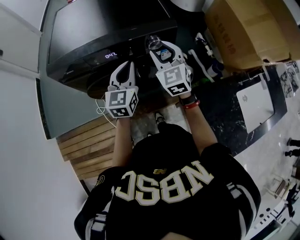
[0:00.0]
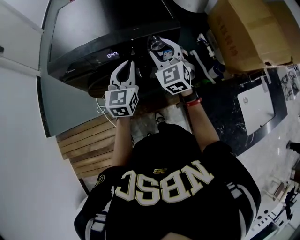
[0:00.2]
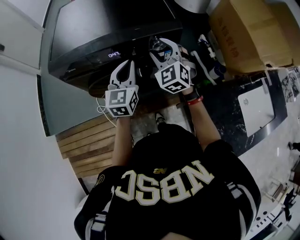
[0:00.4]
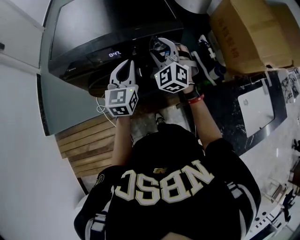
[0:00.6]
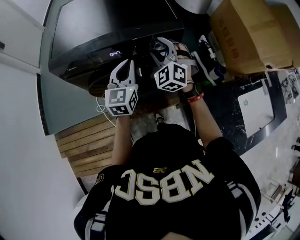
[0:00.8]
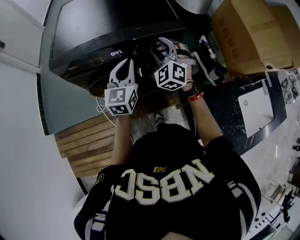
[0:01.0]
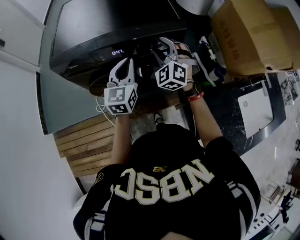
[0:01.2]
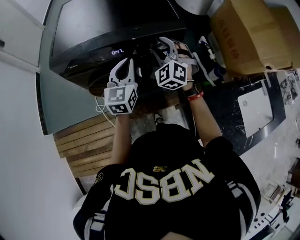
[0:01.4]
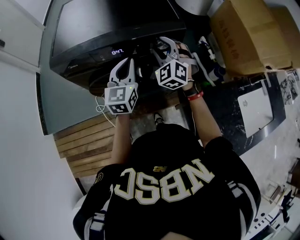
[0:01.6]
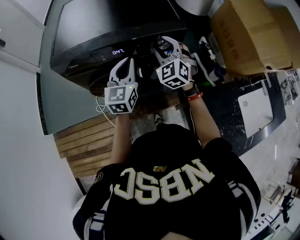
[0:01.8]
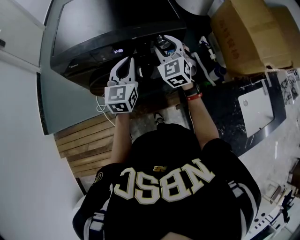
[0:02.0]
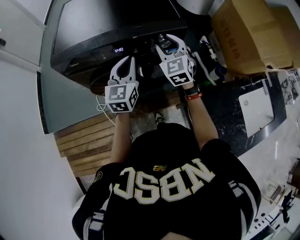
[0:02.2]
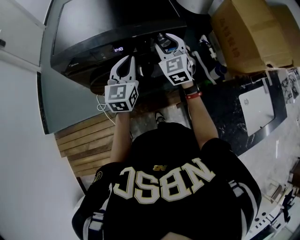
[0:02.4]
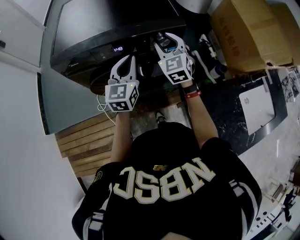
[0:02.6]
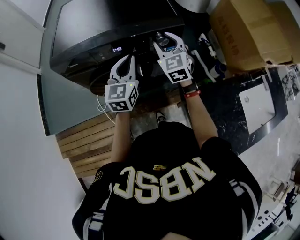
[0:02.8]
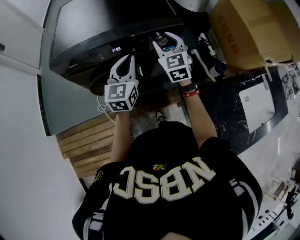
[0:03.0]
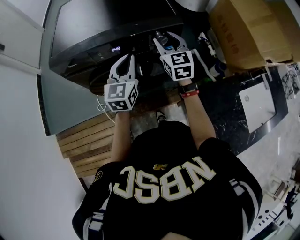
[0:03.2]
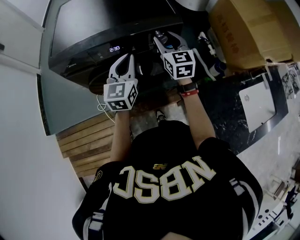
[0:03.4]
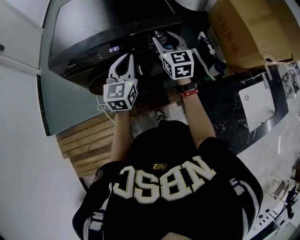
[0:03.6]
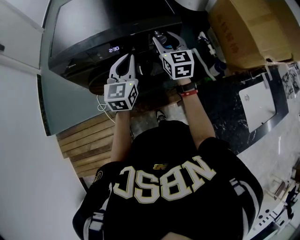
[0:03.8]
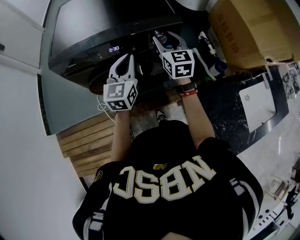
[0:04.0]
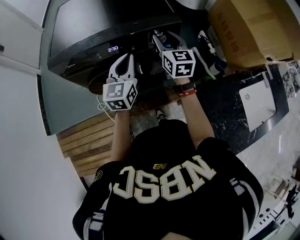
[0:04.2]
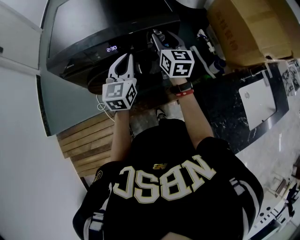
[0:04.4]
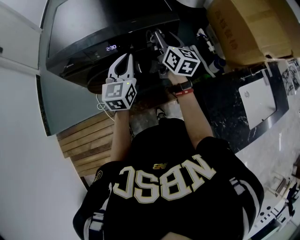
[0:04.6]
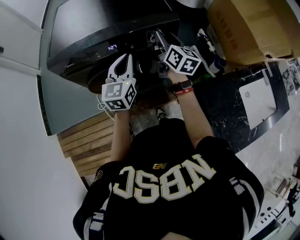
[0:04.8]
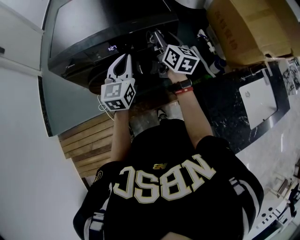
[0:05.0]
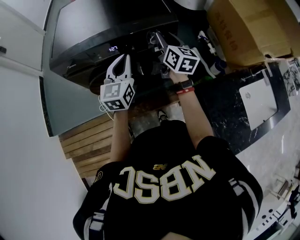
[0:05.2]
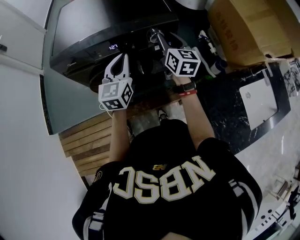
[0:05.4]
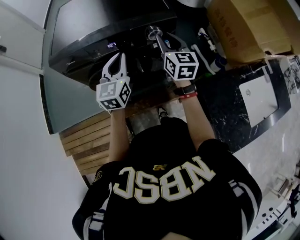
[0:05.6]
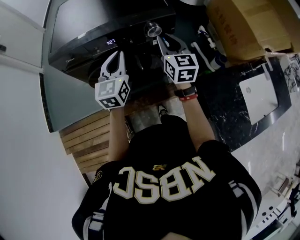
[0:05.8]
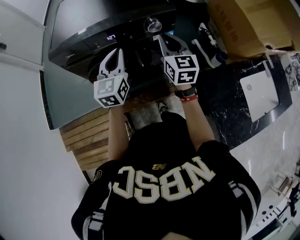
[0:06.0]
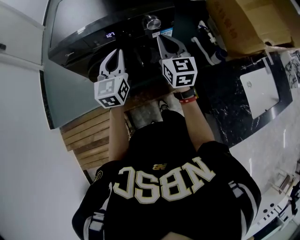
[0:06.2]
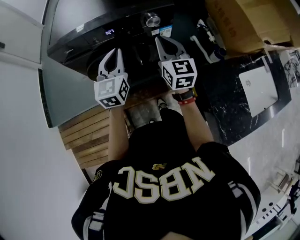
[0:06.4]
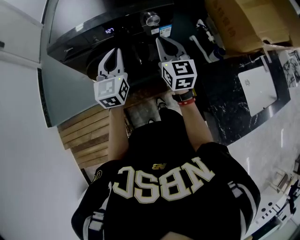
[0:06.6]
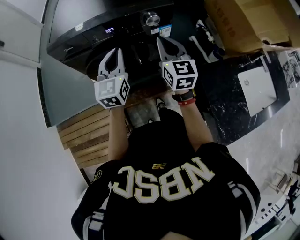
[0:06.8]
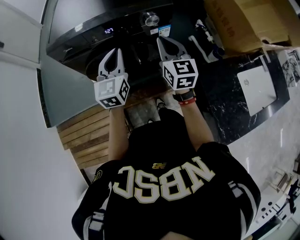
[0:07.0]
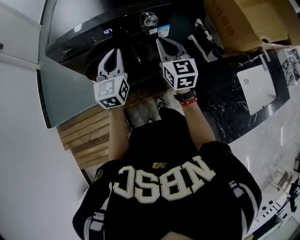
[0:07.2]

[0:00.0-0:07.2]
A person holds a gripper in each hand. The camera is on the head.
0.0 to 1.4 s: The right gripper rotates some 30 degrees.
1.4 to 2.8 s: The right gripper swivels roughly 30 degrees.
2.8 to 4.4 s: The right gripper swivels some 30 degrees.
4.4 to 5.8 s: The right gripper travels backward by some 5 cm, and closes.
5.8 to 7.2 s: The right gripper goes about 5 cm backward.

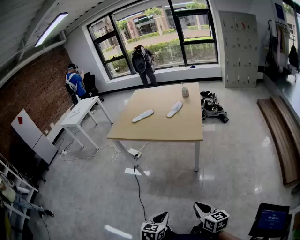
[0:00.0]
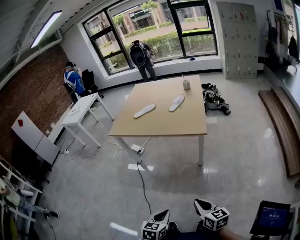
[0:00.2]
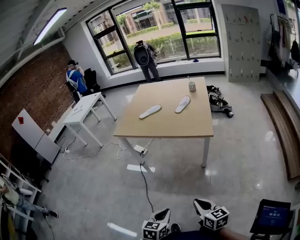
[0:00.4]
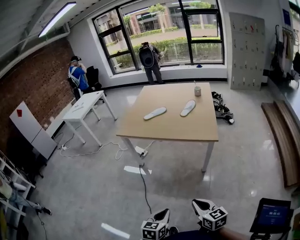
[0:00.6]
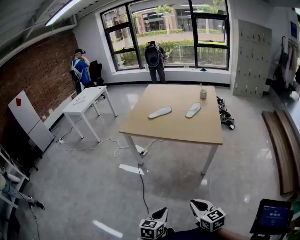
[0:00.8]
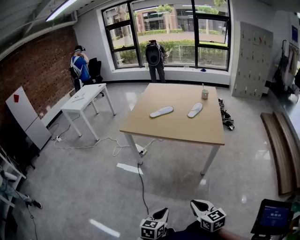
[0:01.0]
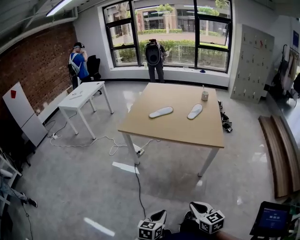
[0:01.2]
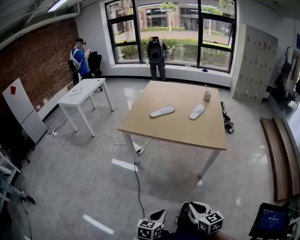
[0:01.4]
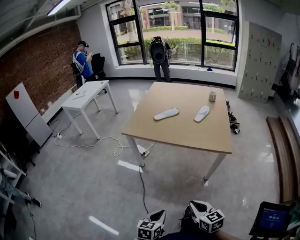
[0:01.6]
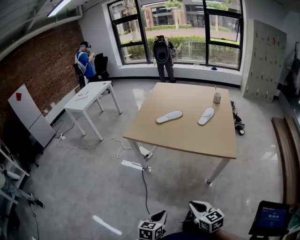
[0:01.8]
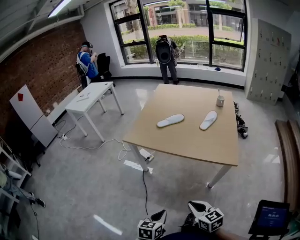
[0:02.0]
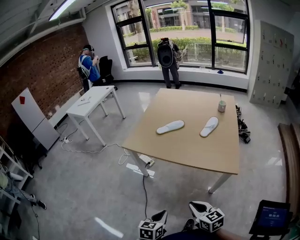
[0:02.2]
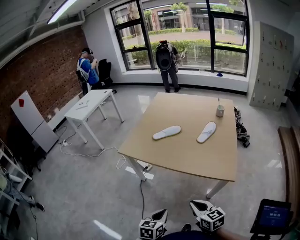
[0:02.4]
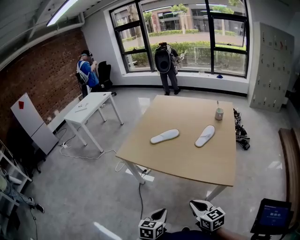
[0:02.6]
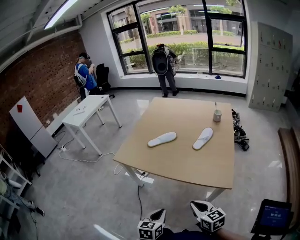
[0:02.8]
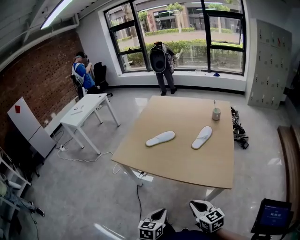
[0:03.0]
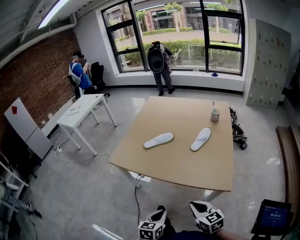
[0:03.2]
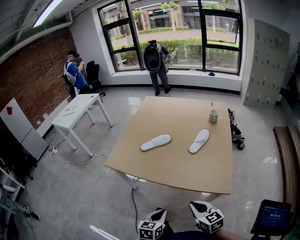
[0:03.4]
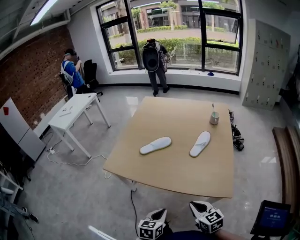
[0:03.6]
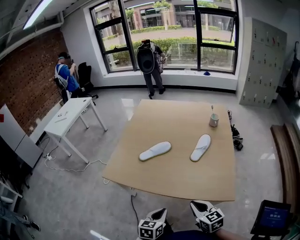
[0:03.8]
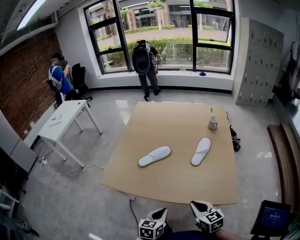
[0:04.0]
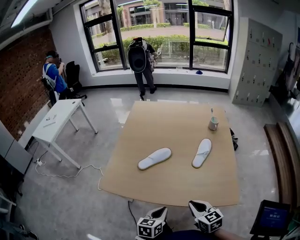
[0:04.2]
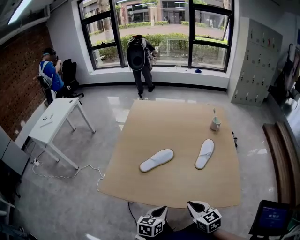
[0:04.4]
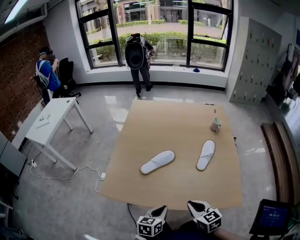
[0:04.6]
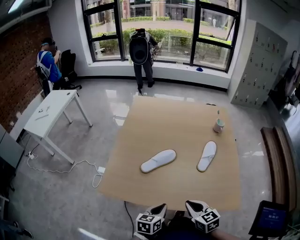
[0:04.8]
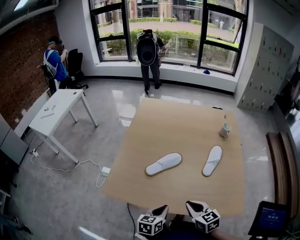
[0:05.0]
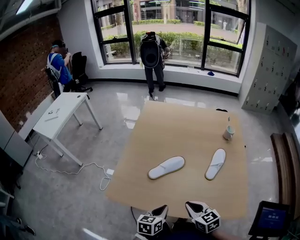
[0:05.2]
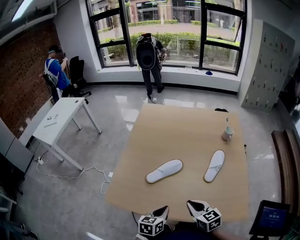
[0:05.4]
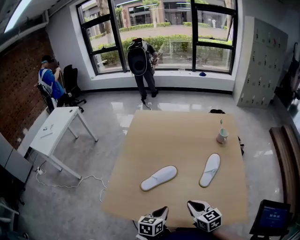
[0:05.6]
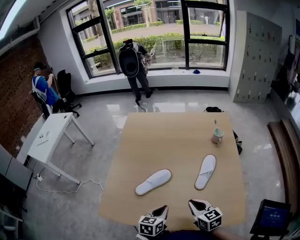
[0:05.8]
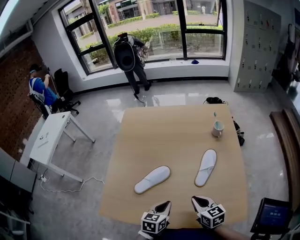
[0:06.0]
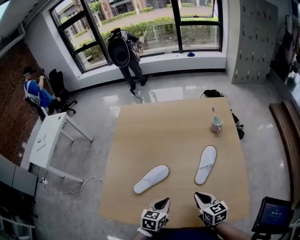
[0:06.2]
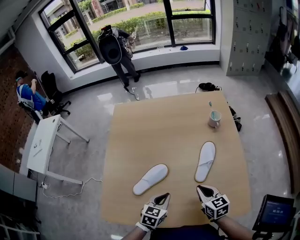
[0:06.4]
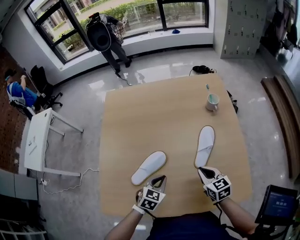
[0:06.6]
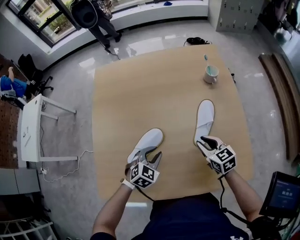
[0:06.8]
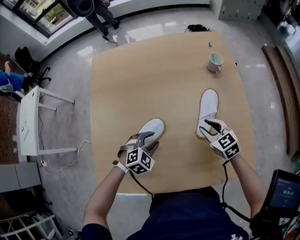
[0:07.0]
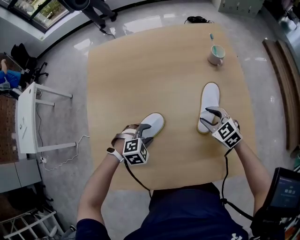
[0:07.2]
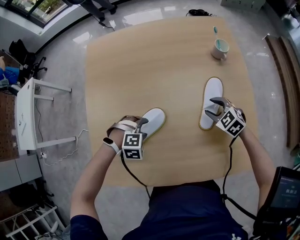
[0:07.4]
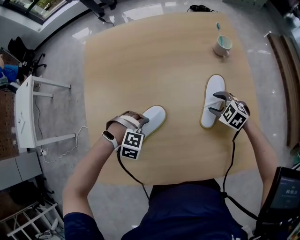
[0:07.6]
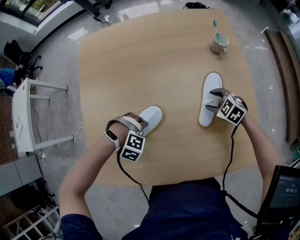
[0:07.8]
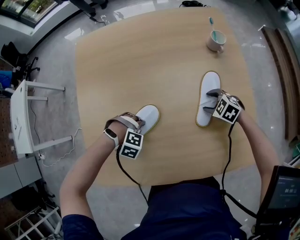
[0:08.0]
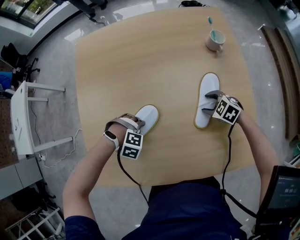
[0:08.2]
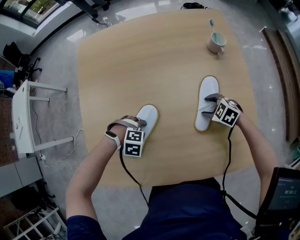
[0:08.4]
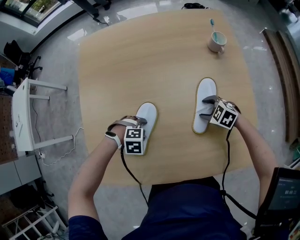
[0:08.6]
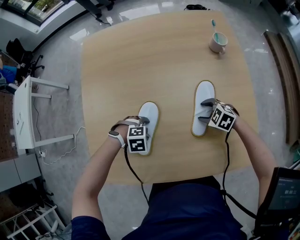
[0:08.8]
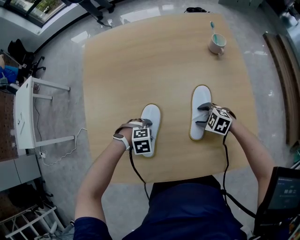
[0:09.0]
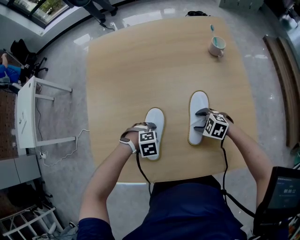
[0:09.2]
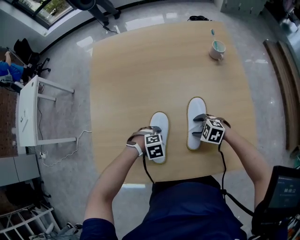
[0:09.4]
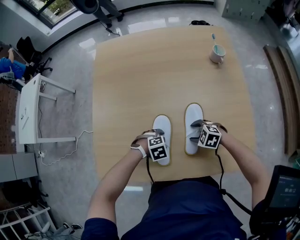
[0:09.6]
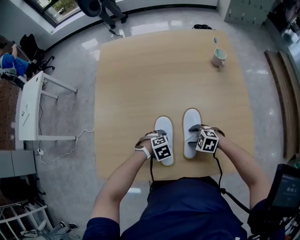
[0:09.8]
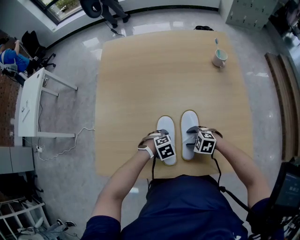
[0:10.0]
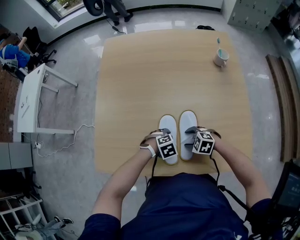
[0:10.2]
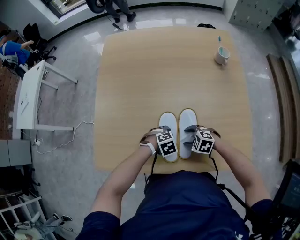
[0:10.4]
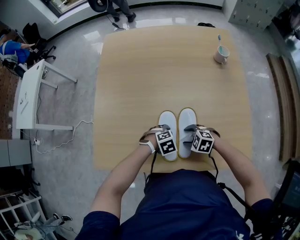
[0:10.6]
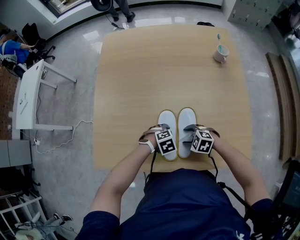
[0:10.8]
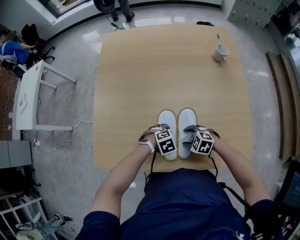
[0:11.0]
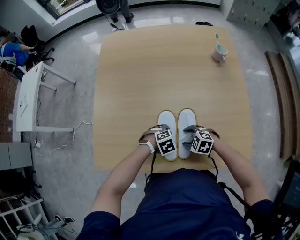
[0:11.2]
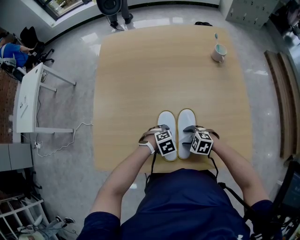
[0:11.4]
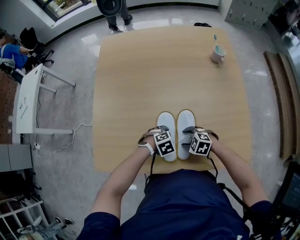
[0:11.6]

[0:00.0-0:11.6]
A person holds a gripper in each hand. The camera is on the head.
0.0 to 1.4 s: The grippers both shift to the left and forward by some 20 cm.
1.4 to 2.8 s: Both grippers move forward, some 25 cm.
2.8 to 4.4 s: The grippers both shift forward by about 25 cm.
4.4 to 5.8 s: Both grippers travel together forward, roughly 15 cm.
5.8 to 7.2 s: The right gripper heads forward, downward and to the right, covering some 20 cm, swivels about 30 degrees, and opens; the left gripper heads forward and downward, covering approximately 20 cm, rotates around the line of its fingers by approximately 80 degrees, clockwise from behind, and opens its fingers.
7.2 to 8.8 s: The left gripper travels downward by about 5 cm, and changes its angle by approximately 20 degrees. The right gripper goes roughly 10 cm downward, and rotates about 30 degrees.
8.8 to 10.2 s: The left gripper moves approximately 10 cm, and turns by some 20 degrees. Meanwhile the right gripper changes place by some 15 cm.
10.2 to 11.6 s: The two grippers keep their place.

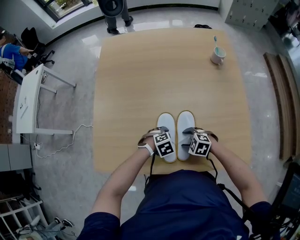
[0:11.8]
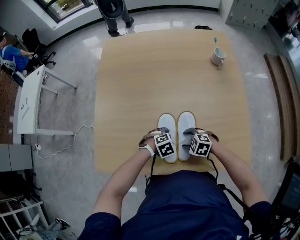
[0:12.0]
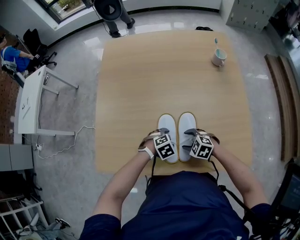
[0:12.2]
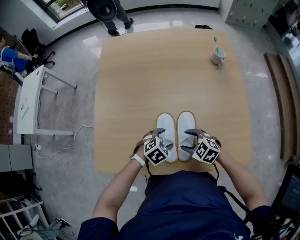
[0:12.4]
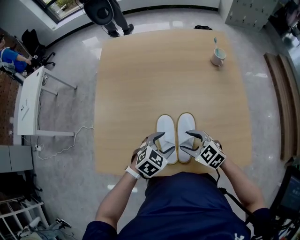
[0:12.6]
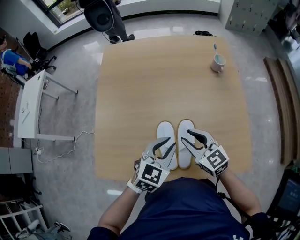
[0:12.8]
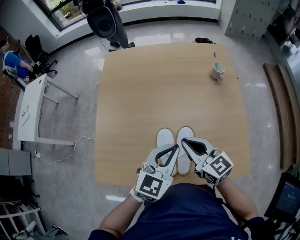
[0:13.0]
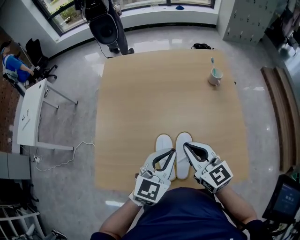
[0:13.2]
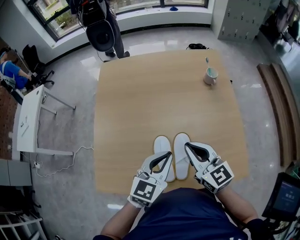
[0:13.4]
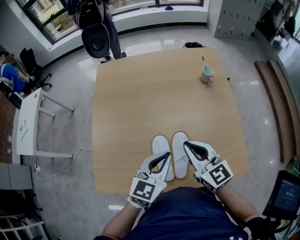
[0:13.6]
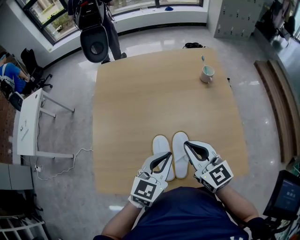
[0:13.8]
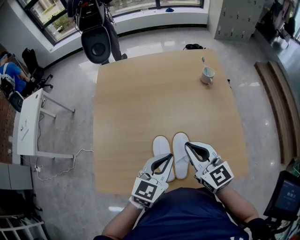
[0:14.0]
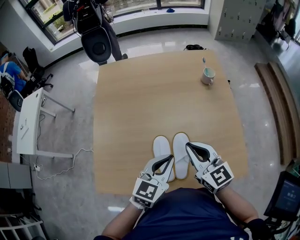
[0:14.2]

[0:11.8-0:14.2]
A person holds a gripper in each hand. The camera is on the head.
11.8 to 13.0 s: Both grippers travel together upward, approximately 30 cm. The left gripper tilts its fingers approximately 50 degrees upward, and closes its fingers. The right gripper angles its fingers upward, by some 50 degrees, and closes its fingers.
13.0 to 14.2 s: The grippers move only a little.

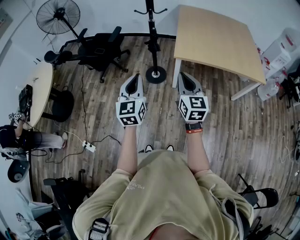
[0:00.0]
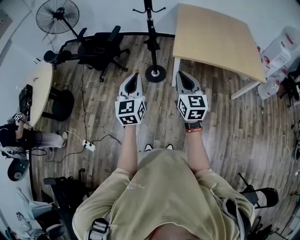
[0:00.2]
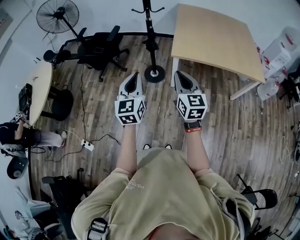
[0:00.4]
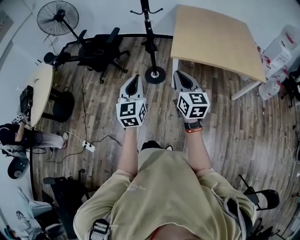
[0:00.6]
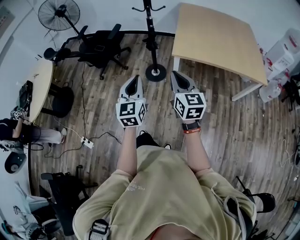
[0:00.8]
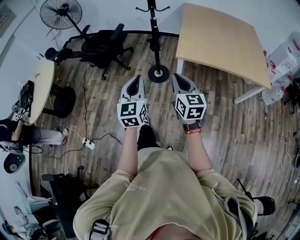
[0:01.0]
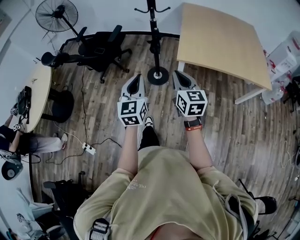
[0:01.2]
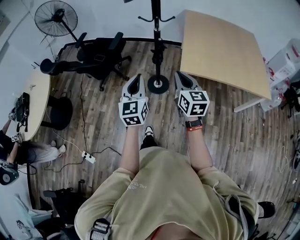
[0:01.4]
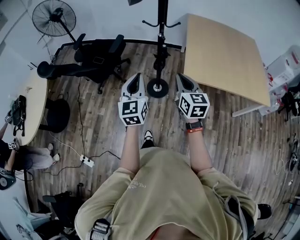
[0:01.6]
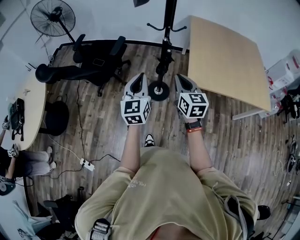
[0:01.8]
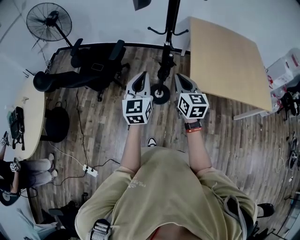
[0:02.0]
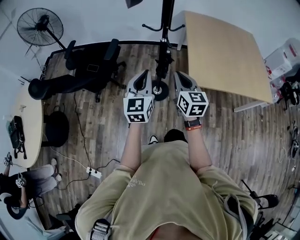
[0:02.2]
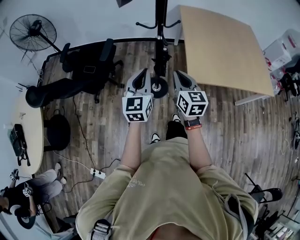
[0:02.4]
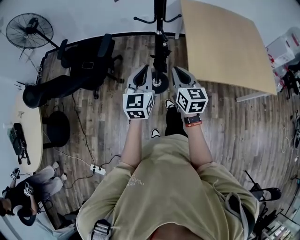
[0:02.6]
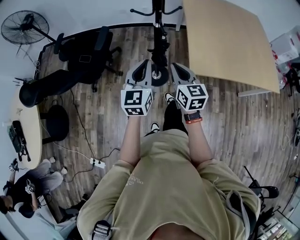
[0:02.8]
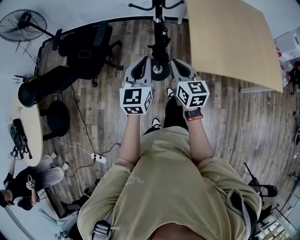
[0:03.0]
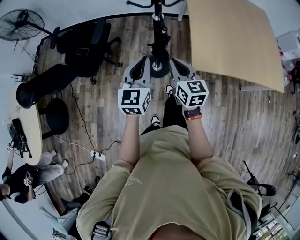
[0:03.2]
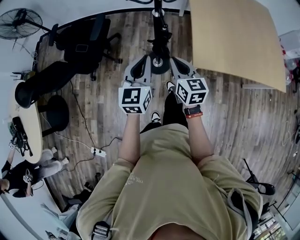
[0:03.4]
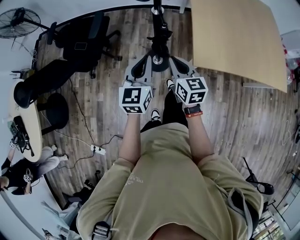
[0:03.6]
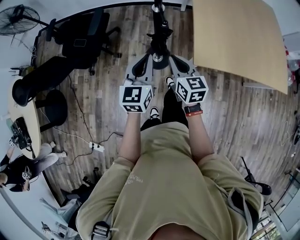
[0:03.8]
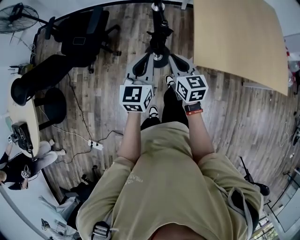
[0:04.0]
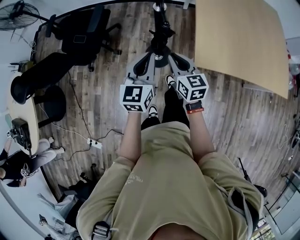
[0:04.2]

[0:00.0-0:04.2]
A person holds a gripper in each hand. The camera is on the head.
0.0 to 1.4 s: The two grippers go some 20 cm forward.
1.4 to 2.8 s: Both grippers travel together forward, roughly 30 cm.
2.8 to 4.2 s: Both grippers travel together downward and forward, roughly 15 cm.
